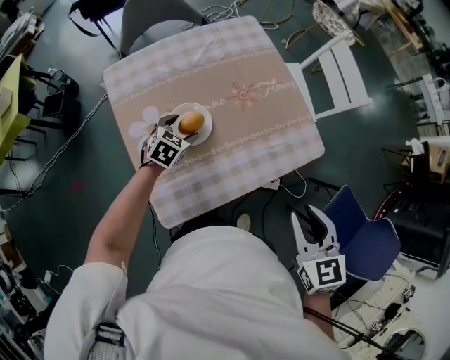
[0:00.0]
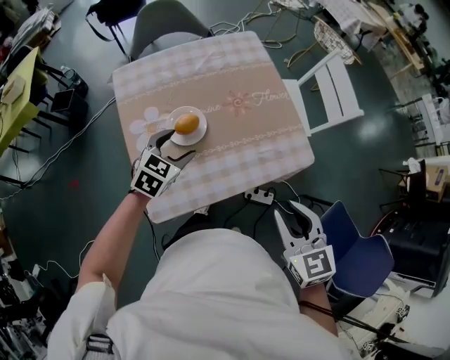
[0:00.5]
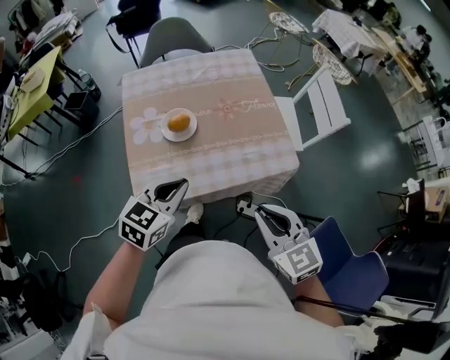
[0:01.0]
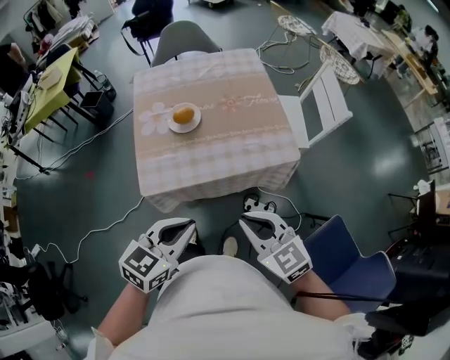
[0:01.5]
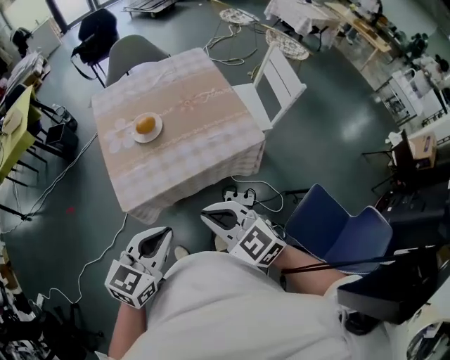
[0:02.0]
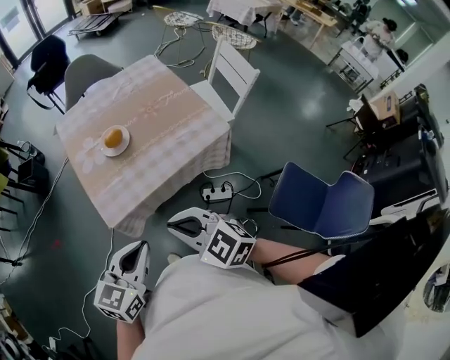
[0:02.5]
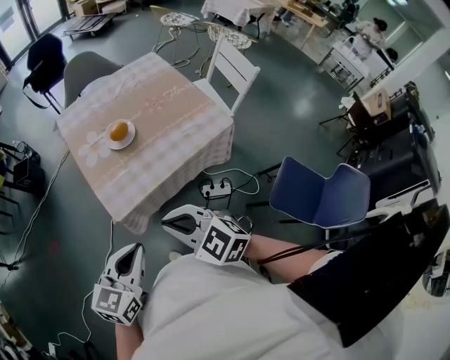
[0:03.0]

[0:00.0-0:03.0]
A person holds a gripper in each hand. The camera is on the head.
0:00.0 to 0:01.5: The right gripper goes approximately 15 cm backward, turns by roughly 40 degrees, and closes up. Meanwhile the left gripper is displaced backward, upward and to the right by some 50 cm, rotates roughly 30 degrees, and closes its fingers.
0:01.5 to 0:03.0: The grippers both shift to the left by approximately 20 cm.

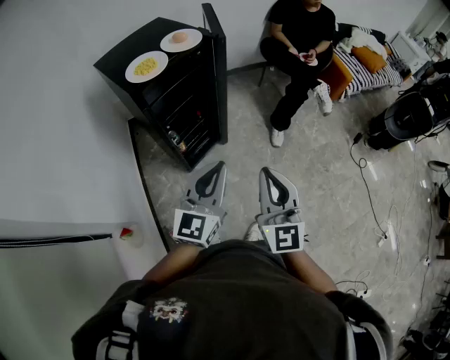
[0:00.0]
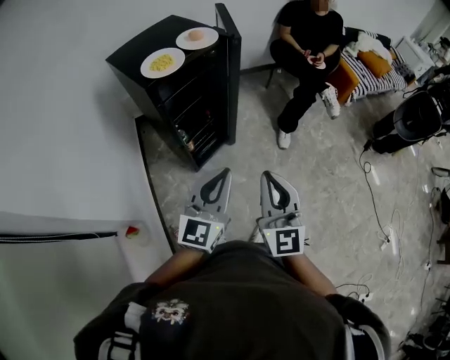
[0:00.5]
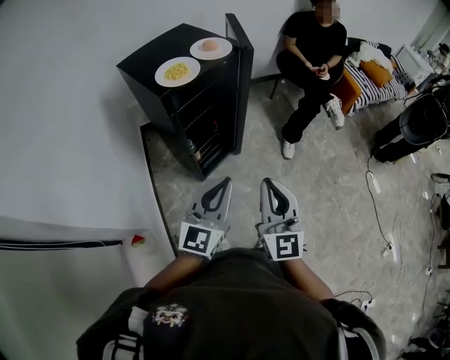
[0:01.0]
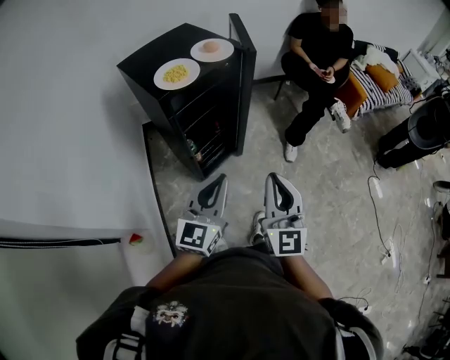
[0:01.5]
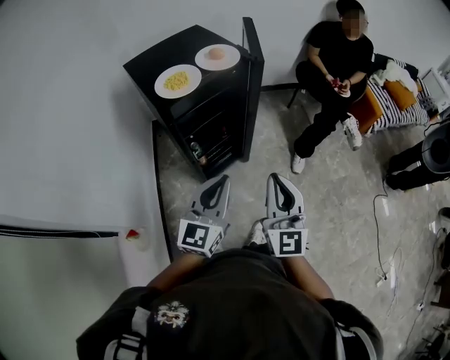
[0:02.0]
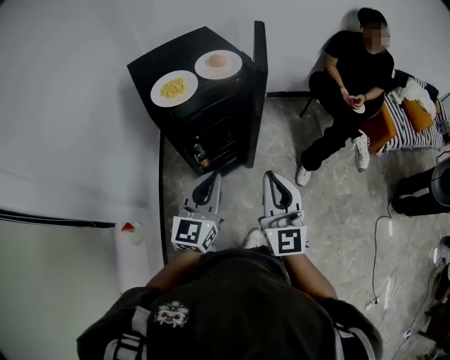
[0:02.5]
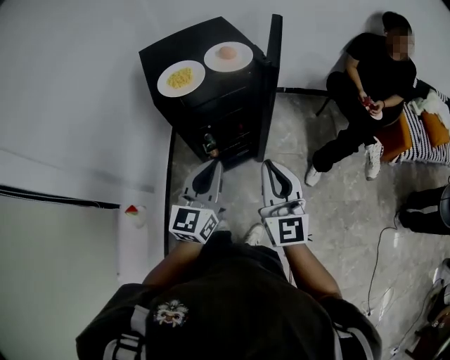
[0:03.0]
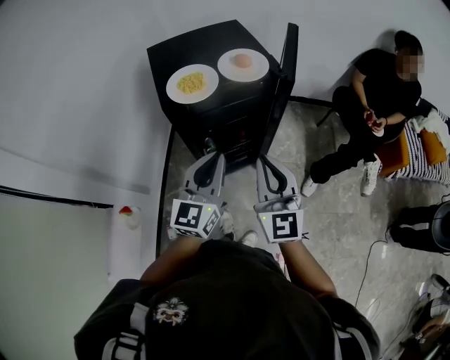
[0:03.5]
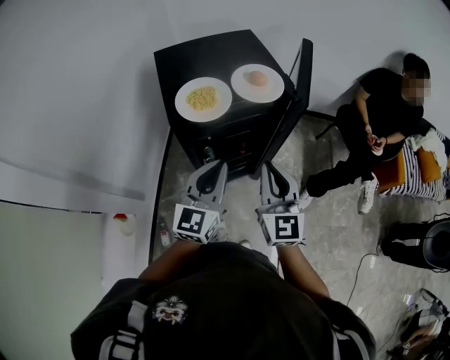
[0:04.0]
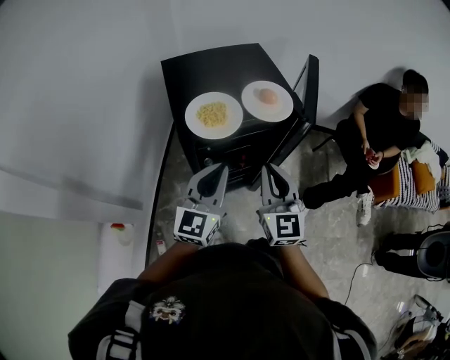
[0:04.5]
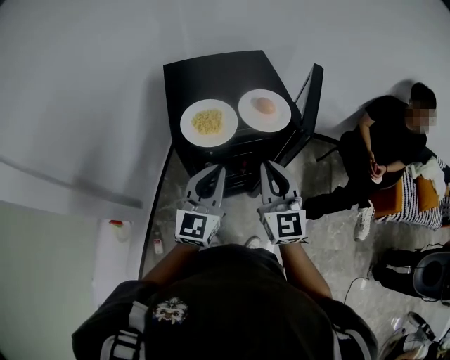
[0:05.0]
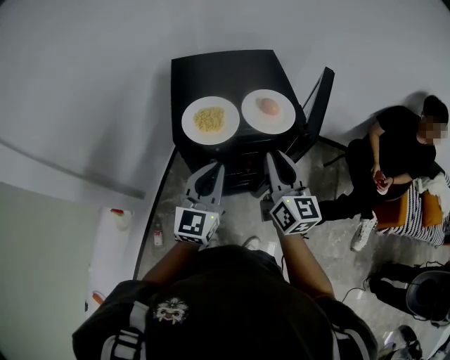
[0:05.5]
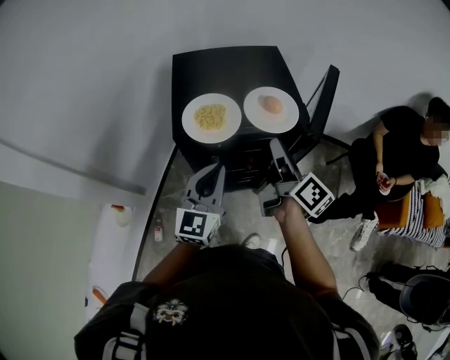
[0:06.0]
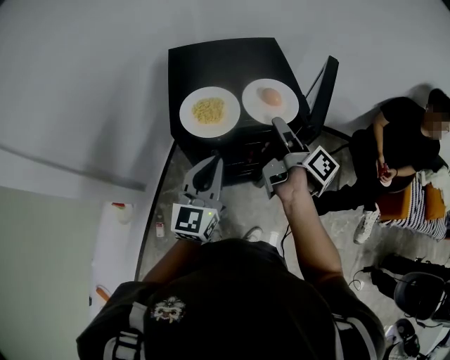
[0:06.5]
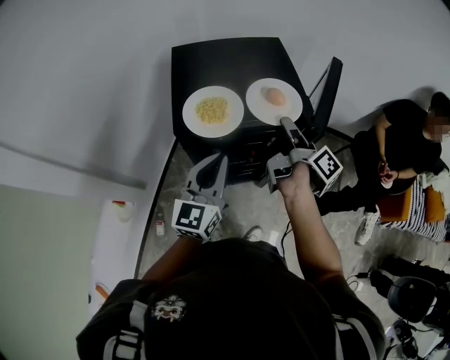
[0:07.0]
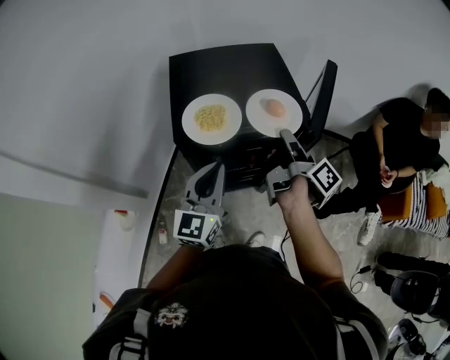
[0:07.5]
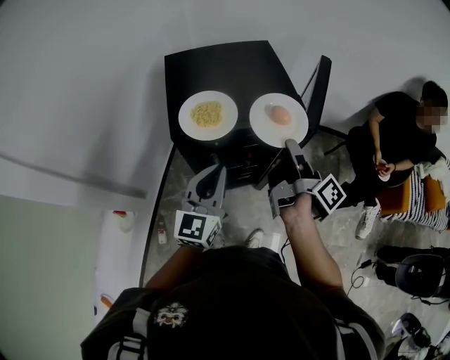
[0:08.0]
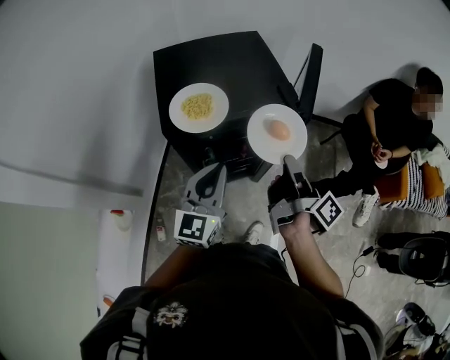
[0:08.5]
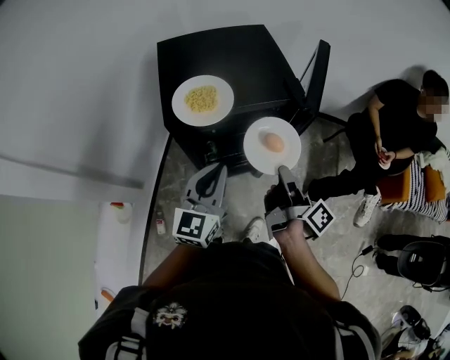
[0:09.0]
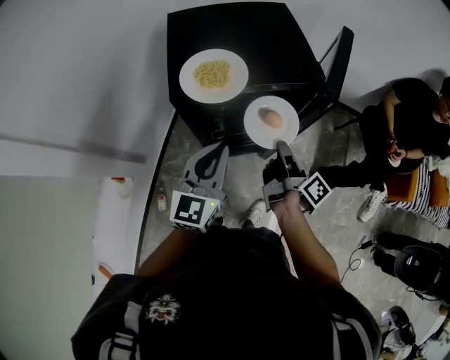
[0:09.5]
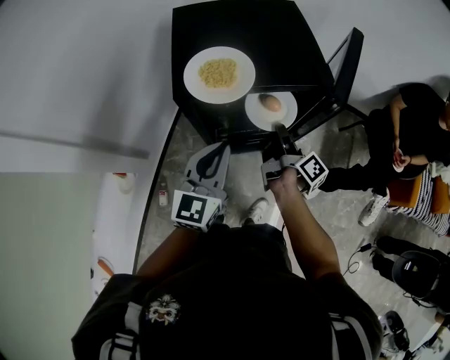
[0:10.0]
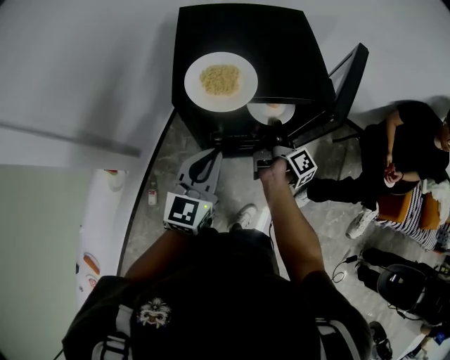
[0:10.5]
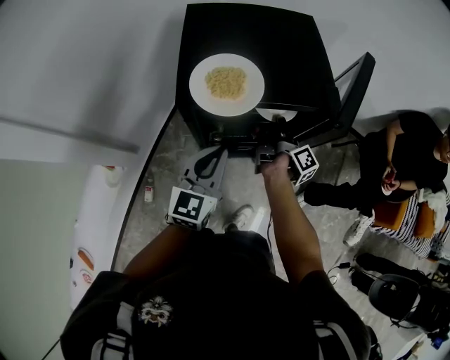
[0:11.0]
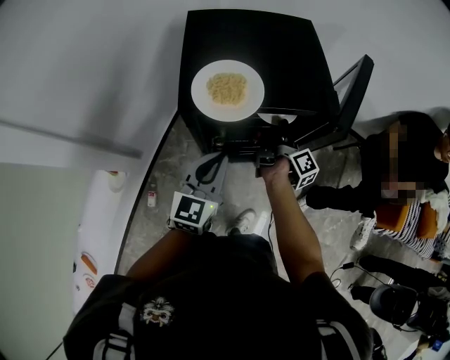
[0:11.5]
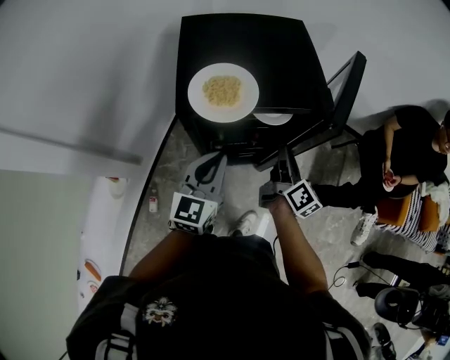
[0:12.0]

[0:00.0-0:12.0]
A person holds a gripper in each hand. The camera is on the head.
0:00.0 to 0:02.0: The left gripper shifts some 5 cm forward. Meanwhile the right gripper is displaced forward by about 10 cm.
0:02.0 to 0:04.0: The grippers both shift forward by approximately 20 cm. The right gripper swivels some 20 degrees.
0:04.0 to 0:06.0: The right gripper heads forward, covering roughly 15 cm, twists approximately 60 degrees clockwise, seen from behind, and opens its fingers. The left gripper heads forward, covering some 5 cm.
0:06.0 to 0:08.0: The right gripper swivels about 30 degrees, and closes.
0:08.0 to 0:10.0: The right gripper travels downward by roughly 15 cm.
0:10.0 to 0:12.0: The right gripper travels forward and back again, about 10 cm each way, and changes its angle by about 30 degrees.

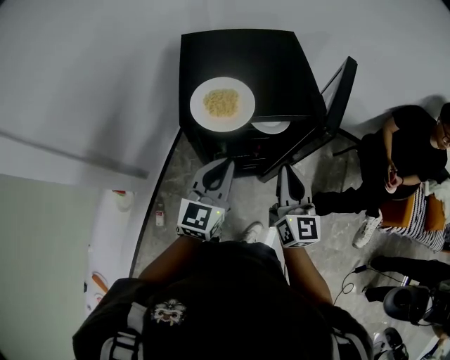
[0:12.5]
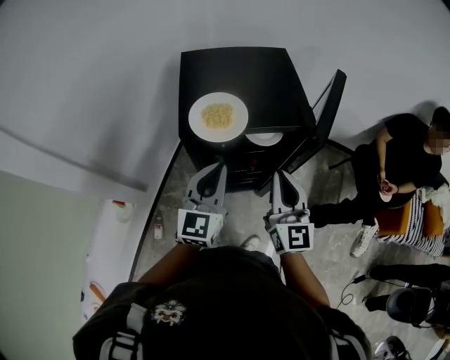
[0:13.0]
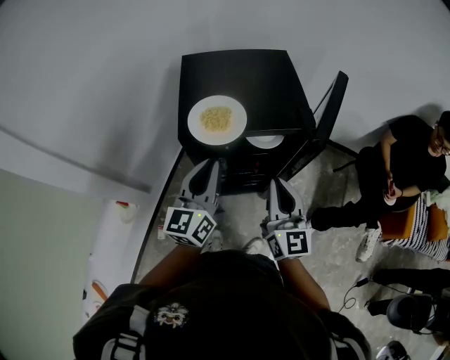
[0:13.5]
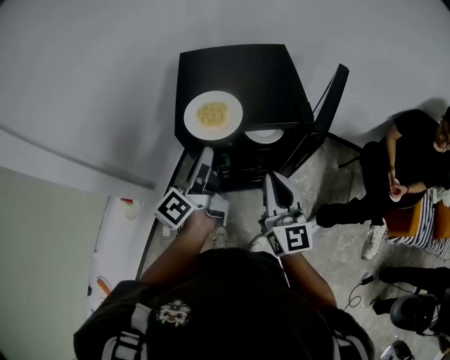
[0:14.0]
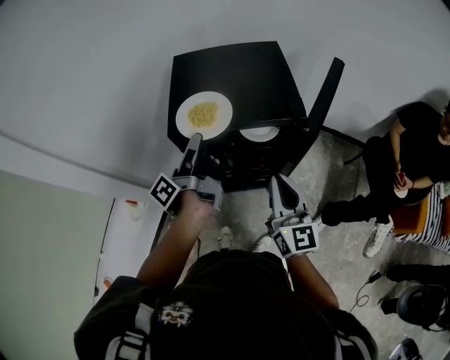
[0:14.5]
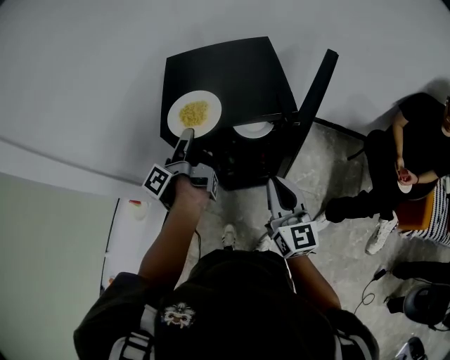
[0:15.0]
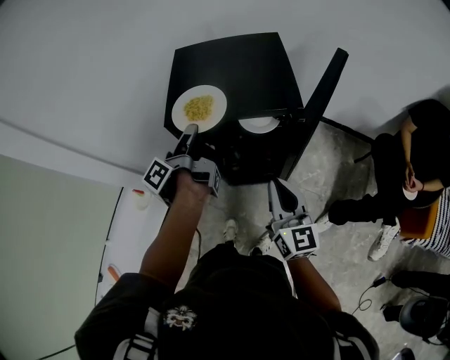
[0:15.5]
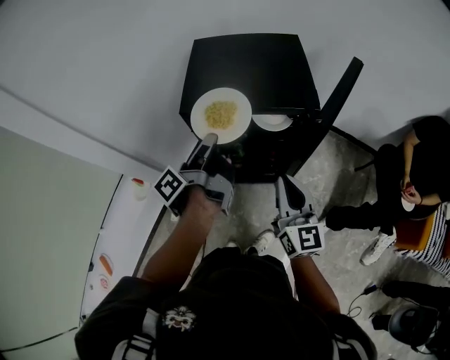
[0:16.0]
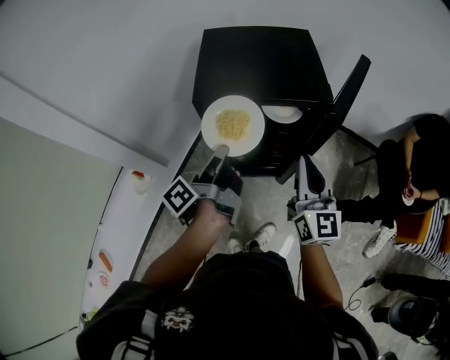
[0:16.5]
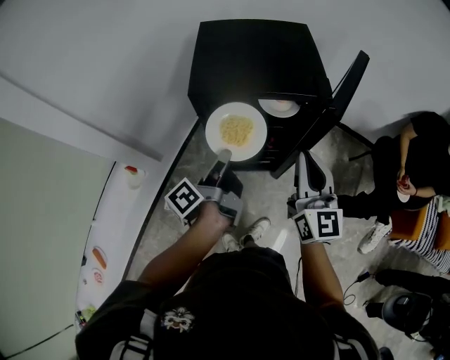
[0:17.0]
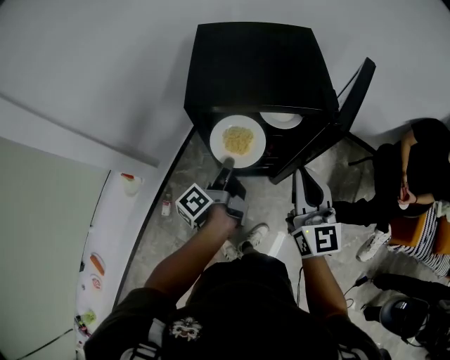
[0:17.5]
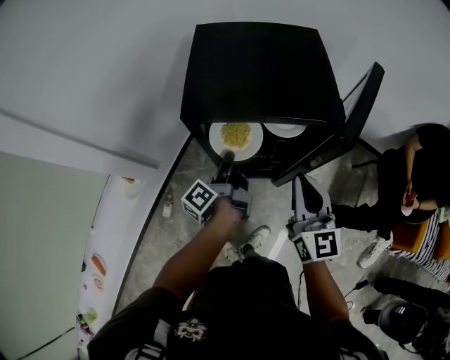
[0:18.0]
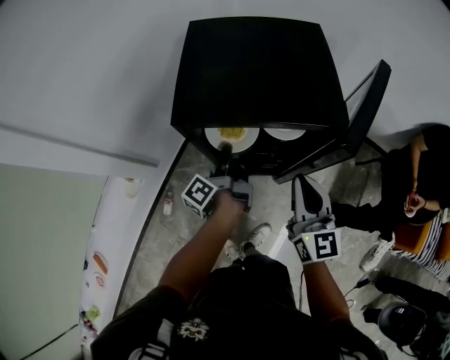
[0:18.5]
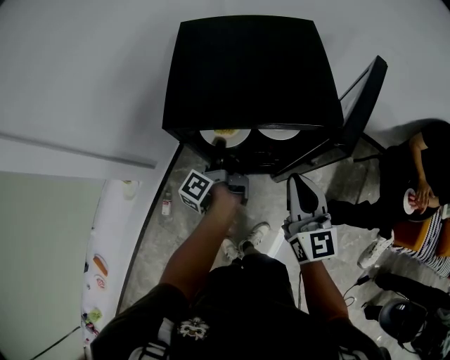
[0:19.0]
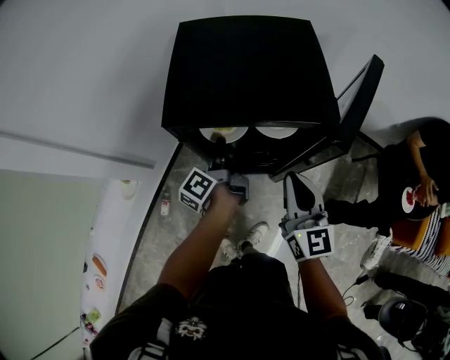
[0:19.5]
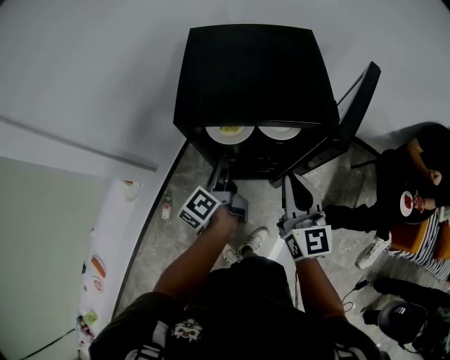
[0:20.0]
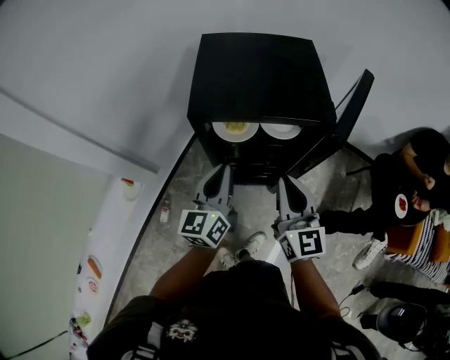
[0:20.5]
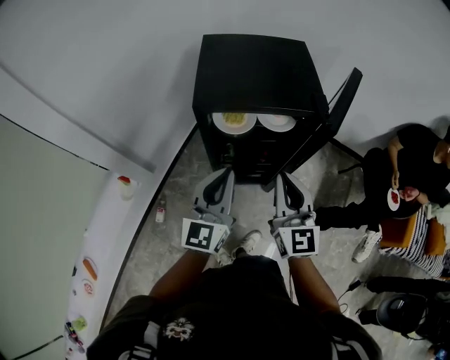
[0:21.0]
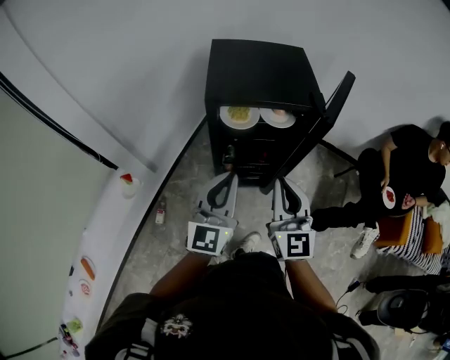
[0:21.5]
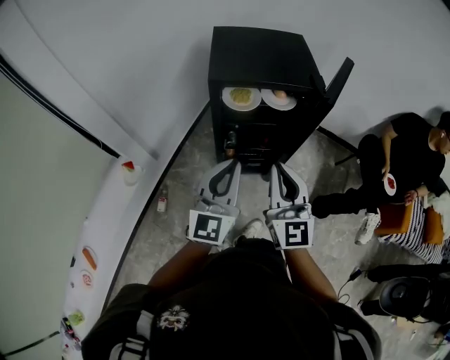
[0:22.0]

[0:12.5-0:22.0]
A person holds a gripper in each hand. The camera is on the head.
0:12.5 to 0:14.5: The left gripper moves forward and upward, approximately 10 cm, twists some 80 degrees counterclockwise, seen from behind, and opens its fingers.
0:14.5 to 0:16.5: The left gripper travels backward by roughly 10 cm, and closes.
0:16.5 to 0:18.0: The right gripper ends up some 5 cm from where it was. The left gripper is displaced downward and forward by approximately 15 cm.
0:20.0 to 0:22.0: The right gripper heads backward, to the left and upward, covering roughly 20 cm. The left gripper goes some 30 cm backward and upward, and rolls clockwise, seen from behind, by about 70 degrees.

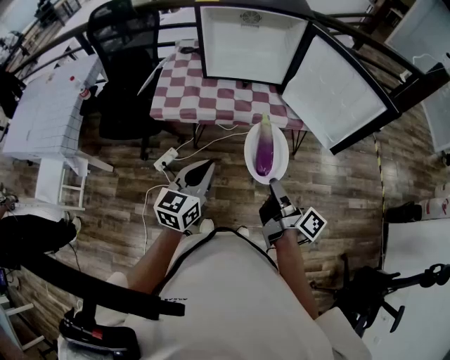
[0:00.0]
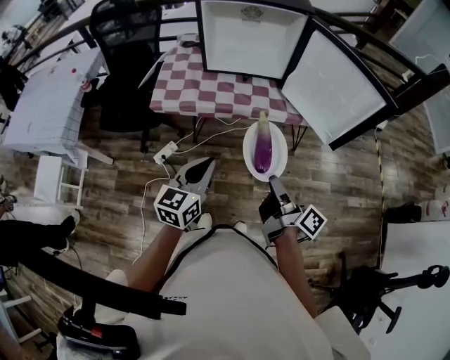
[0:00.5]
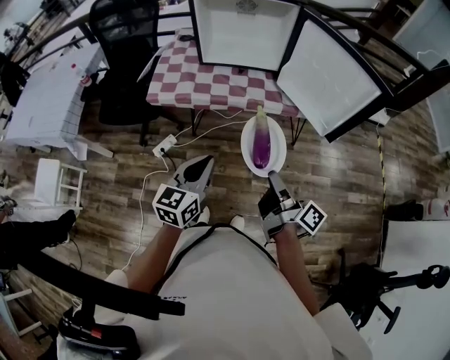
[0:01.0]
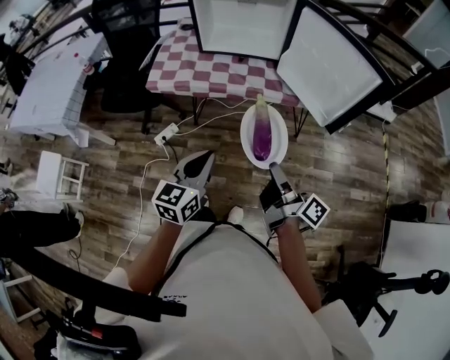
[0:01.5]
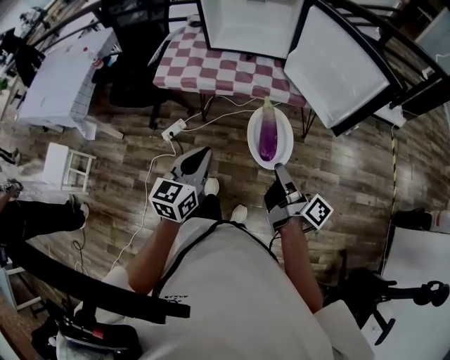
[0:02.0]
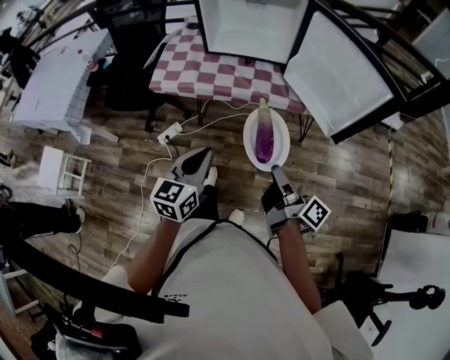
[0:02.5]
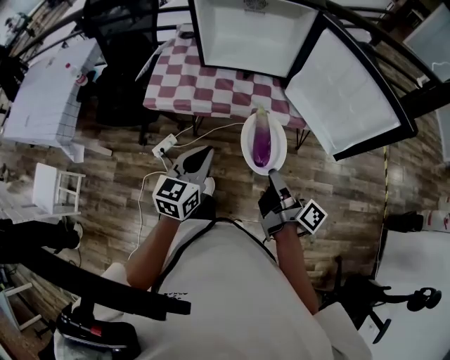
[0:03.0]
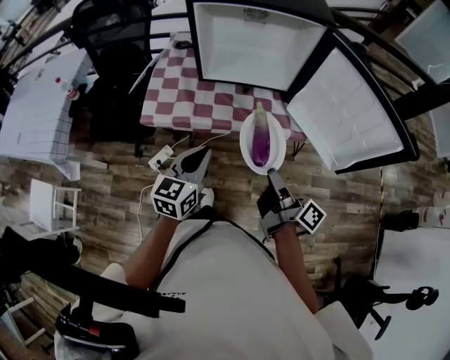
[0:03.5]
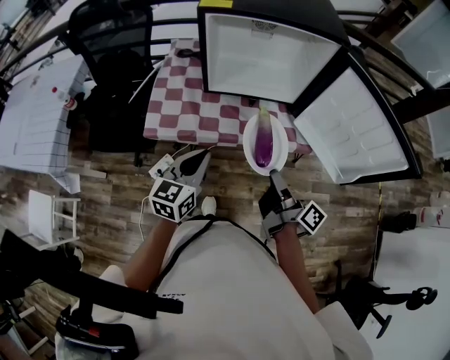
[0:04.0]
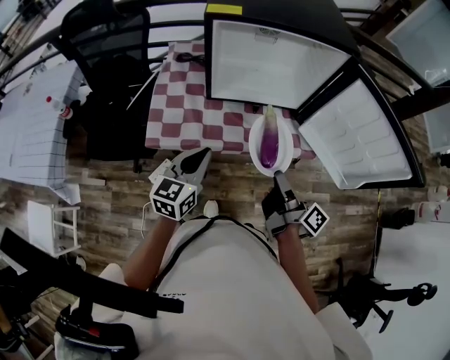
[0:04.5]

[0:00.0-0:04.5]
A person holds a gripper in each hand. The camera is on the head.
0:00.0 to 0:02.0: The left gripper shifts by approximately 10 cm.
0:02.0 to 0:04.5: The left gripper ends up approximately 35 cm from where it was.
